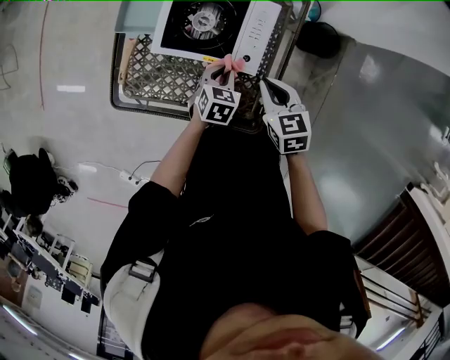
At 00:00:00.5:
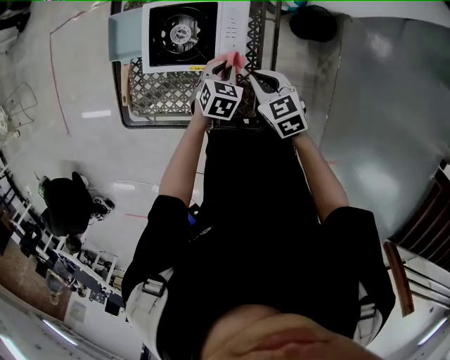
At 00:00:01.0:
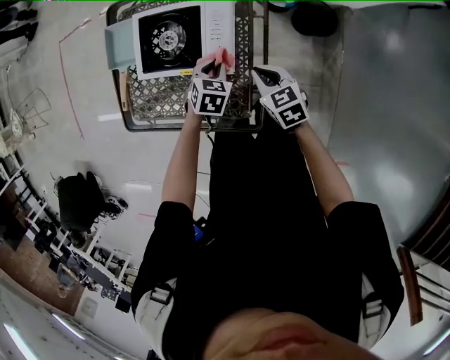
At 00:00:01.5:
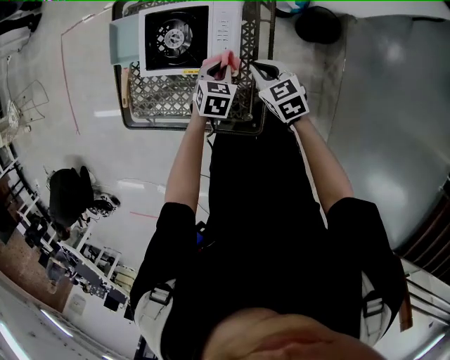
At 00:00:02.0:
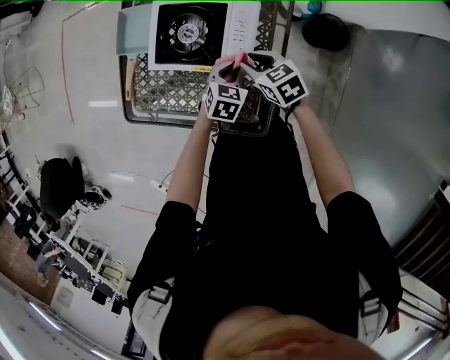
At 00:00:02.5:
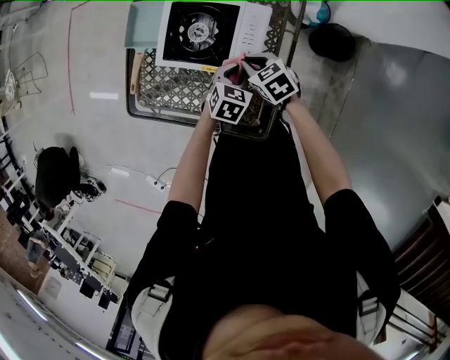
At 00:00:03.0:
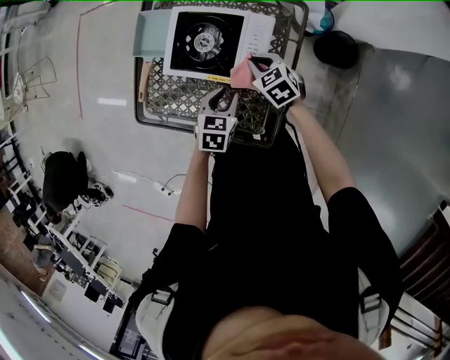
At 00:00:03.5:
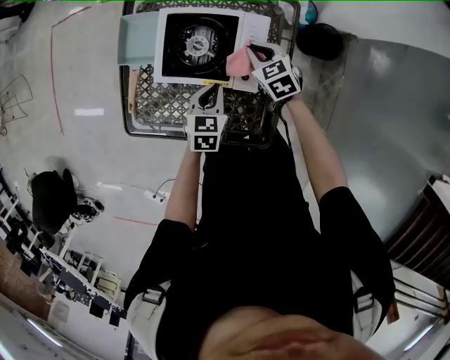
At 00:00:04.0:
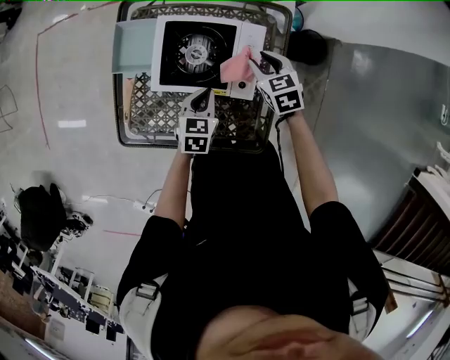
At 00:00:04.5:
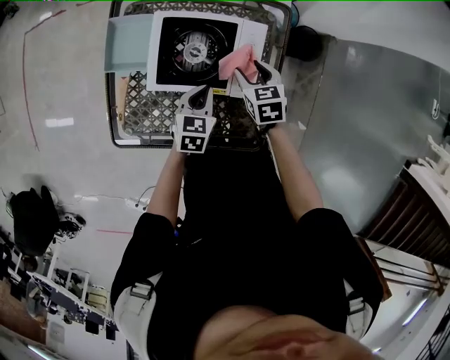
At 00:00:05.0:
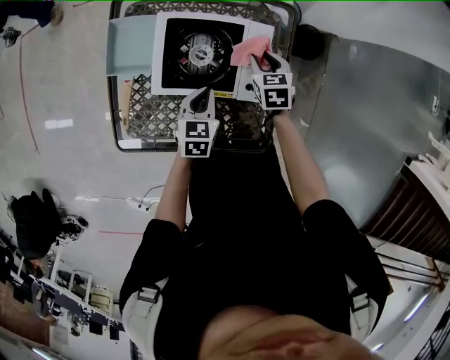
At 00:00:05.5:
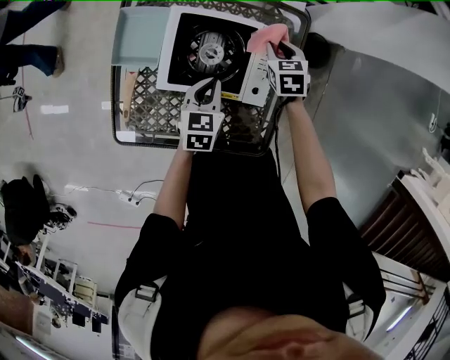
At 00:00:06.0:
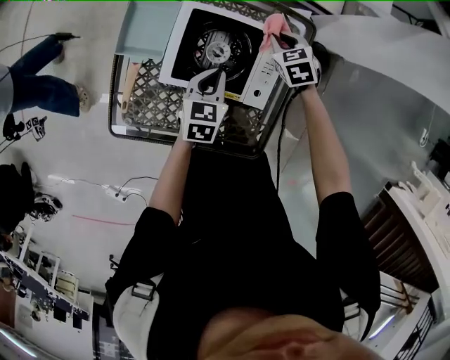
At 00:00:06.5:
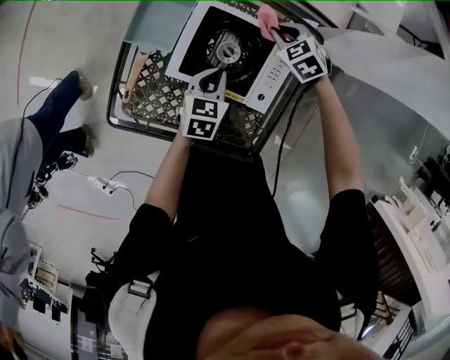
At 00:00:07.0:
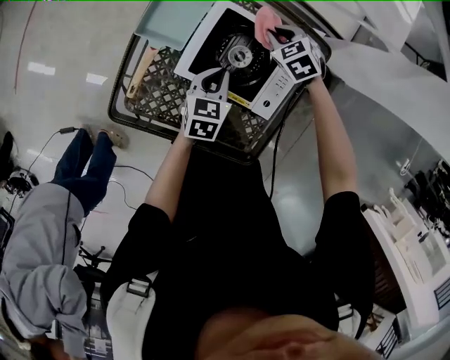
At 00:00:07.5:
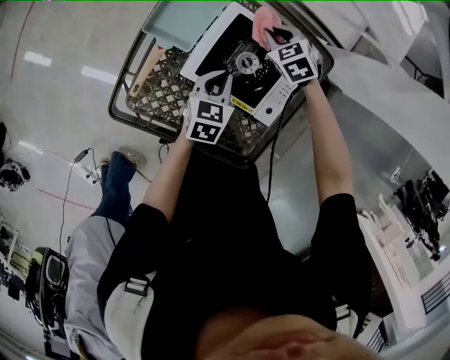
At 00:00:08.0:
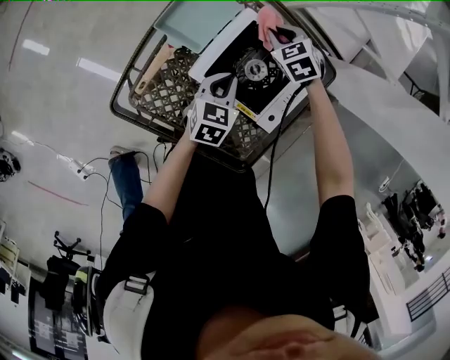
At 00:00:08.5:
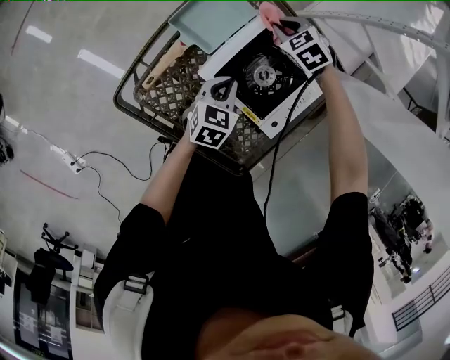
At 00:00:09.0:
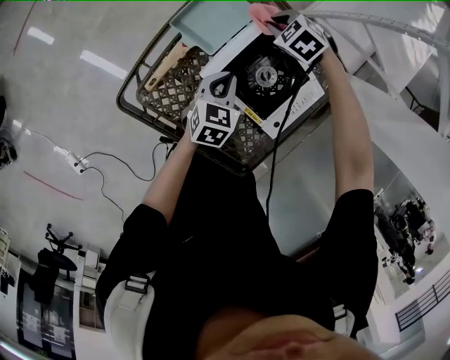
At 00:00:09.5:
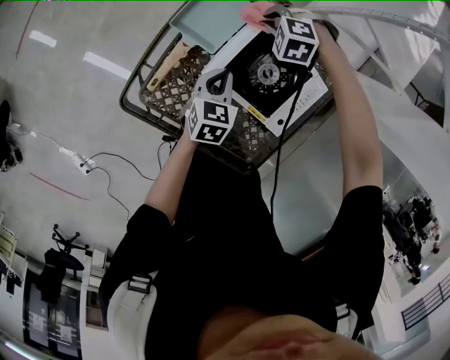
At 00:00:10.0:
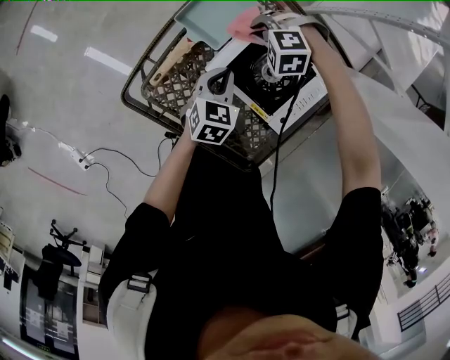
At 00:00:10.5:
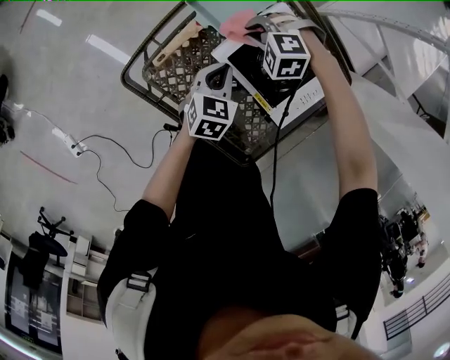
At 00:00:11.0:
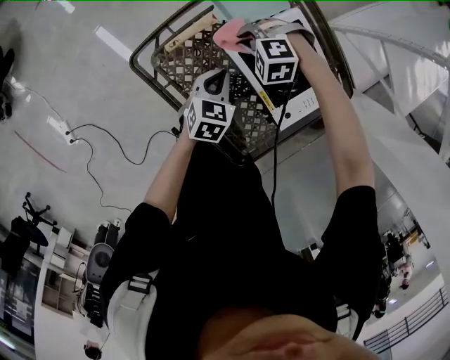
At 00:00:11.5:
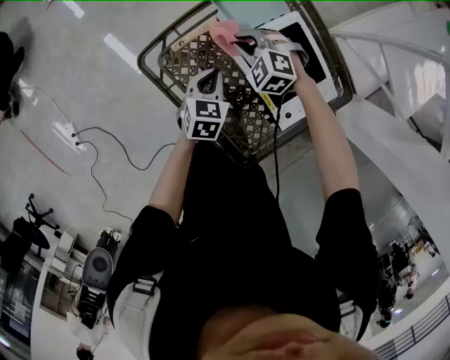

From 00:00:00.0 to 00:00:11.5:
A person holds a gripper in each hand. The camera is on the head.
From 00:00:00.0 to 00:00:02.0: The left gripper moves to the right, some 5 cm. Meanwhile the right gripper is displaced downward and forward by roughly 10 cm, and opens up.
From 00:00:02.0 to 00:00:04.0: The right gripper heads forward, covering some 10 cm, turns by approximately 20 degrees, and closes and opens again. The left gripper goes approximately 10 cm to the left.
From 00:00:04.0 to 00:00:06.0: The right gripper is displaced forward and downward by approximately 10 cm, and closes. The left gripper moves forward, roughly 5 cm.
From 00:00:06.0 to 00:00:07.5: The right gripper goes roughly 15 cm to the left, and turns by approximately 30 degrees; the left gripper shifts roughly 5 cm to the left.
From 00:00:07.5 to 00:00:09.5: The left gripper ends up about 5 cm from where it was. The right gripper ends up about 10 cm from where it was, and rolls counterclockwise, seen from behind, by roughly 50 degrees.
From 00:00:09.5 to 00:00:11.5: The left gripper ends up about 10 cm from where it was, and changes its angle by approximately 20 degrees, while the right gripper shifts by approximately 20 cm, and rotates approximately 30 degrees.

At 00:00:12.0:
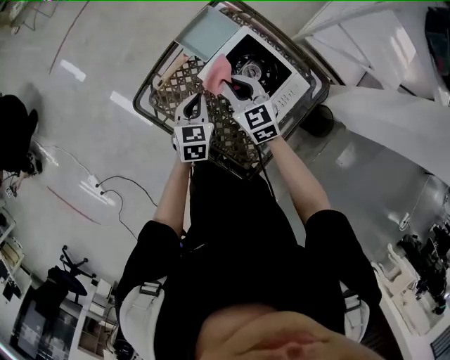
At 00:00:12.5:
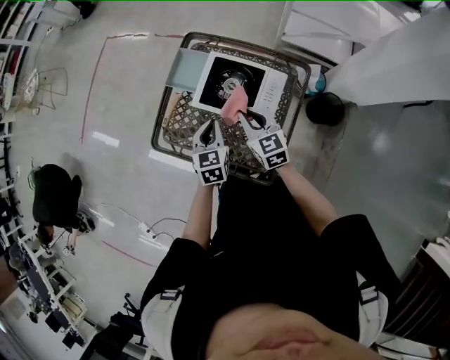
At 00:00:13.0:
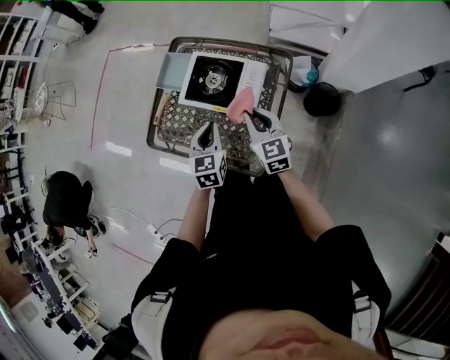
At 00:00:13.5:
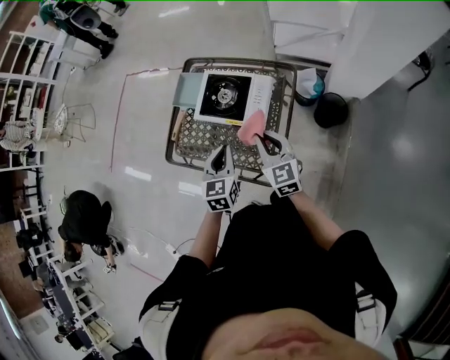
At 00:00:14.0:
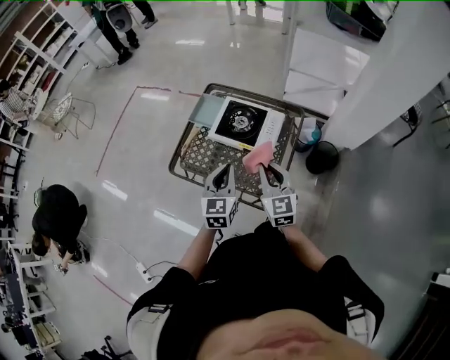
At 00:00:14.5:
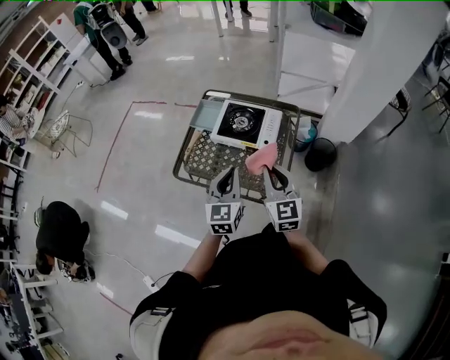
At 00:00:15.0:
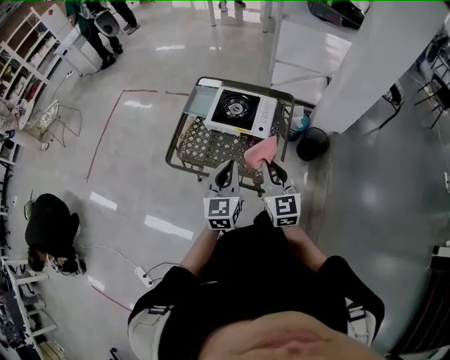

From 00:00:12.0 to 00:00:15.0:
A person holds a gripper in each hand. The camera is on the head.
From 00:00:12.0 to 00:00:13.5: The right gripper travels backward, to the right and upward by approximately 30 cm, and turns by about 30 degrees. Meanwhile the left gripper moves backward, upward and to the right, approximately 25 cm, and changes its angle by about 20 degrees.
From 00:00:13.5 to 00:00:15.0: The grippers both shift backward, upward and to the left by about 20 cm.
